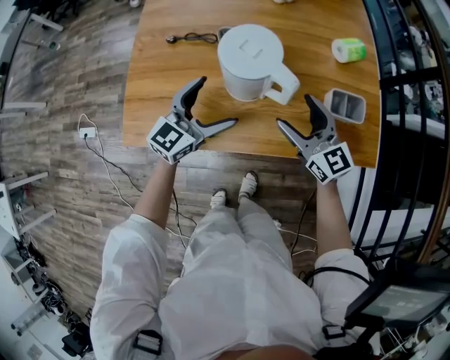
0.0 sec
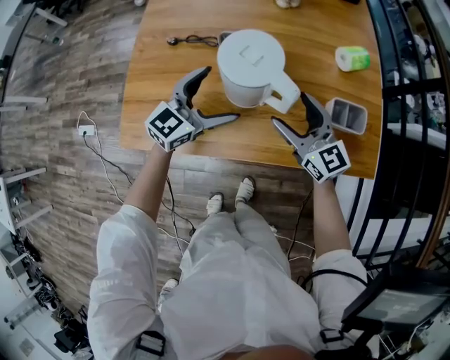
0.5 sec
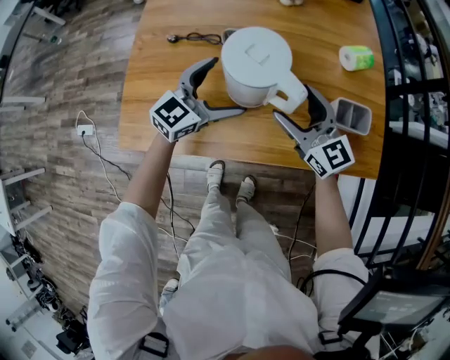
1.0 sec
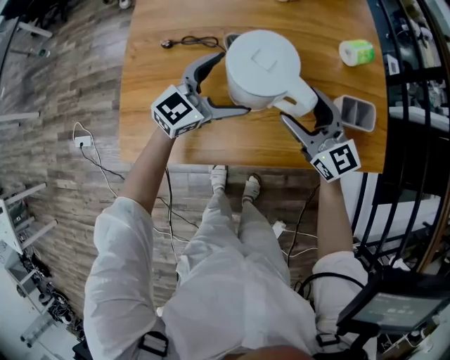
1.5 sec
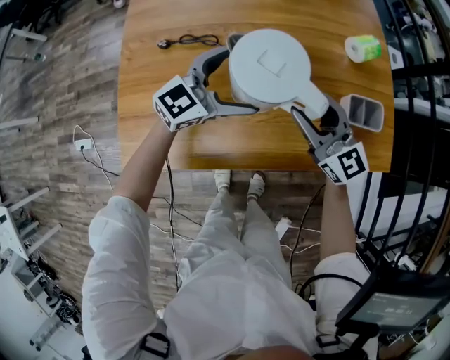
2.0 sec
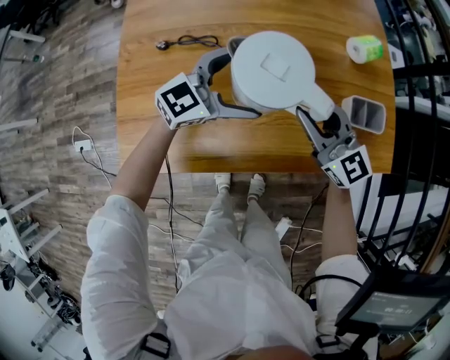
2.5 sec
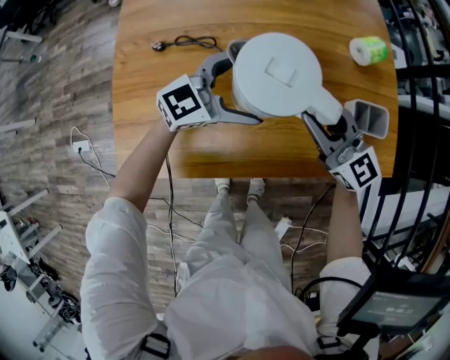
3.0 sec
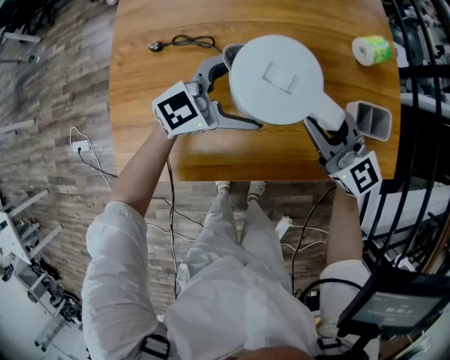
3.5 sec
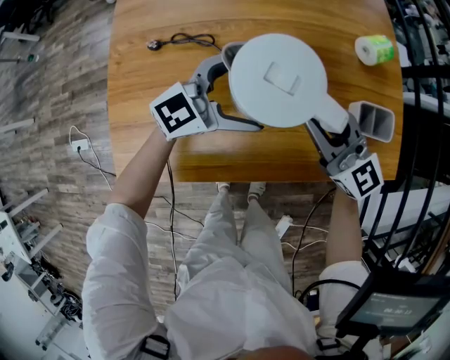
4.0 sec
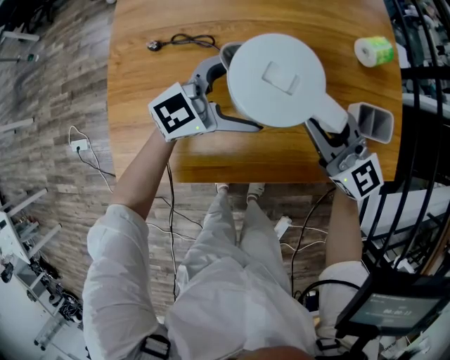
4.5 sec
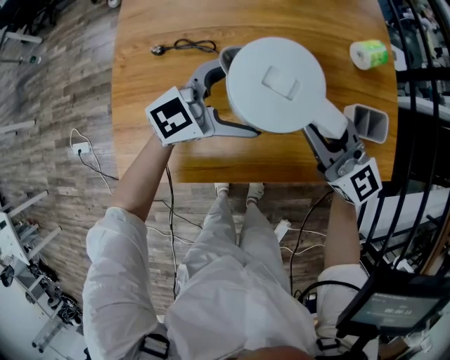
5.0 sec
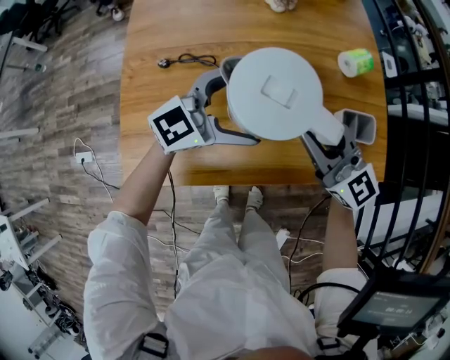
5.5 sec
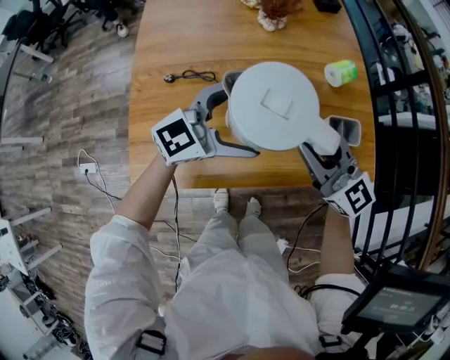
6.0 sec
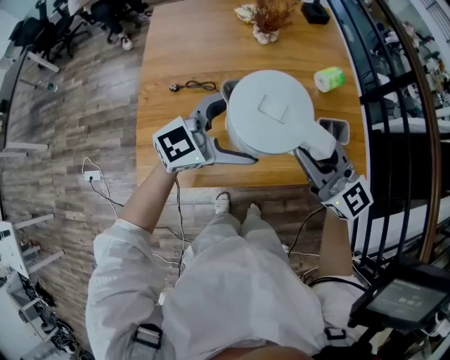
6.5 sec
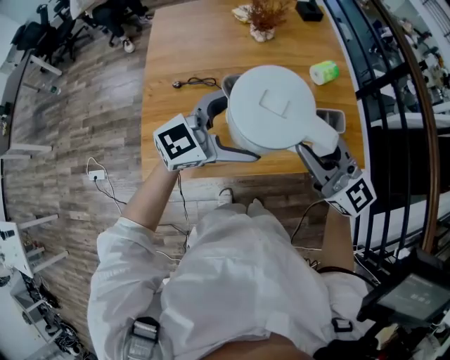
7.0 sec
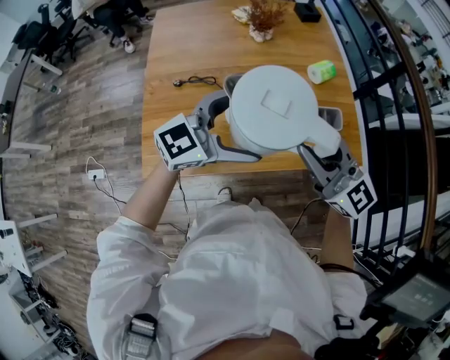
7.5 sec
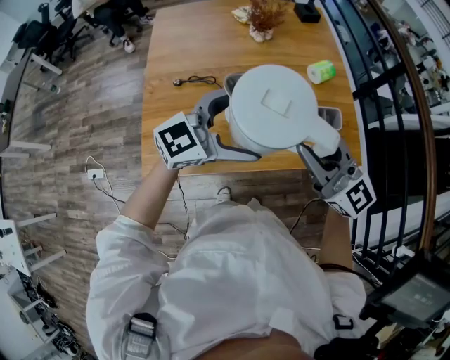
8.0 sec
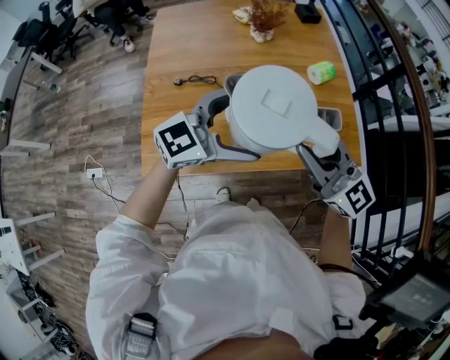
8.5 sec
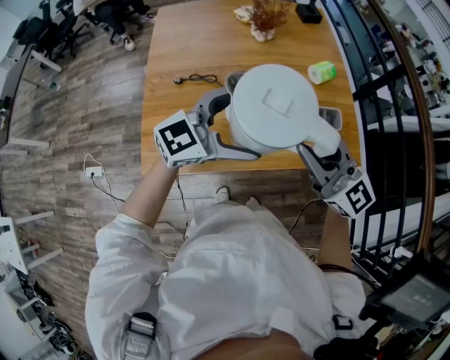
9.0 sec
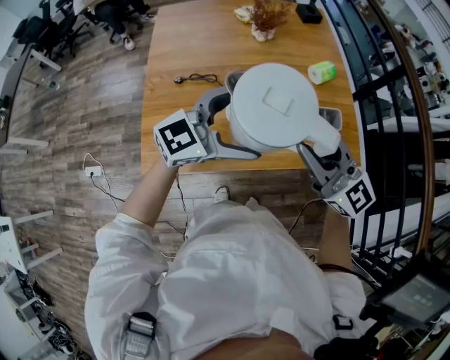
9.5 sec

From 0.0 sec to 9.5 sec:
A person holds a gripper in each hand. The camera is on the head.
From 0.0 sec to 2.0 sec: The left gripper moves forward, approximately 10 cm, and rotates about 20 degrees; the right gripper ends up about 5 cm from where it was, and closes its fingers.
From 2.0 sec to 4.0 sec: There are only small adjustments of the grippers.
From 4.0 sec to 5.5 sec: Both grippers travel together upward, approximately 10 cm.
From 5.5 sec to 7.5 sec: Both grippers travel together upward and backward, about 20 cm.
From 7.5 sec to 9.5 sec: Both grippers stay about where they are.

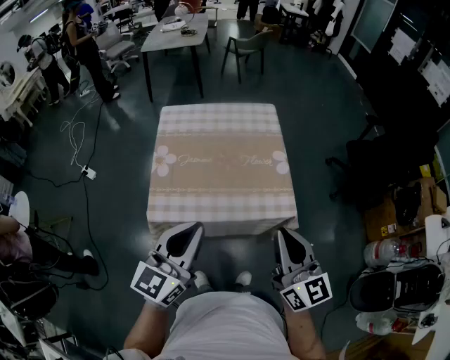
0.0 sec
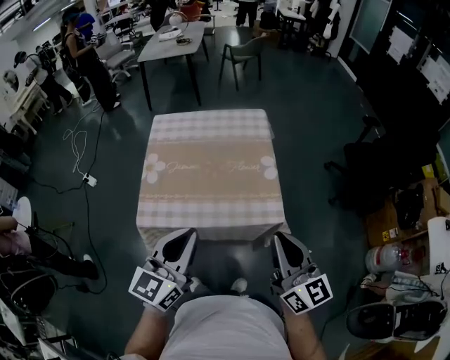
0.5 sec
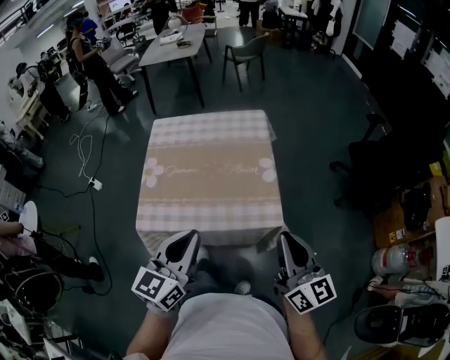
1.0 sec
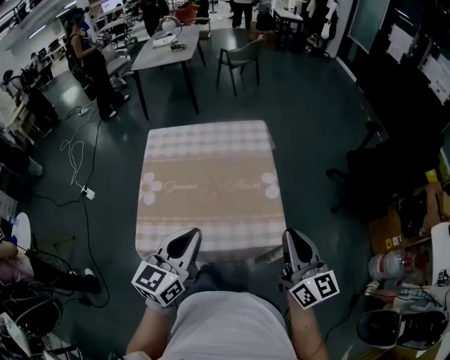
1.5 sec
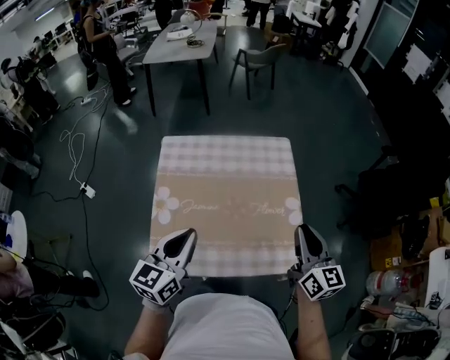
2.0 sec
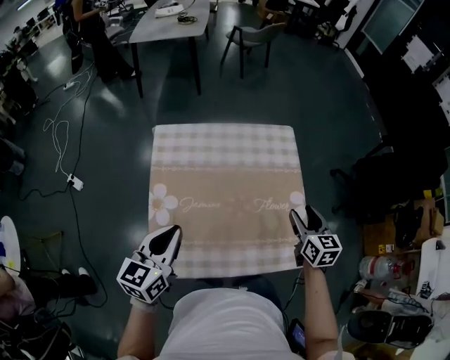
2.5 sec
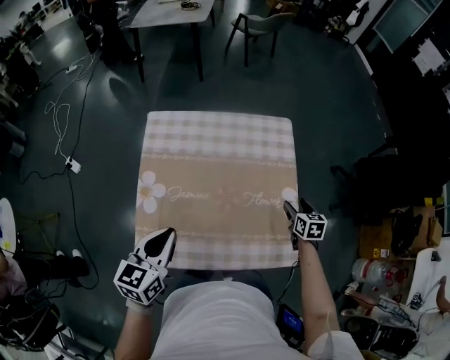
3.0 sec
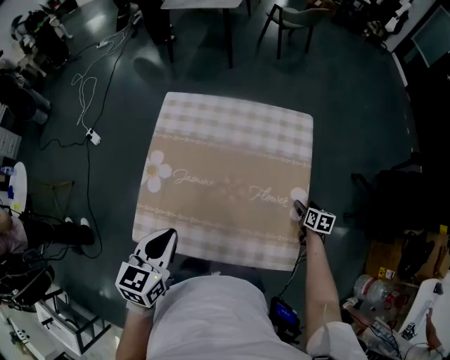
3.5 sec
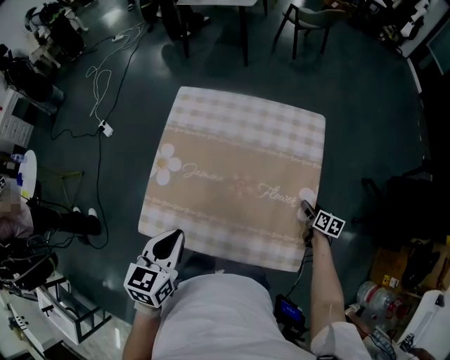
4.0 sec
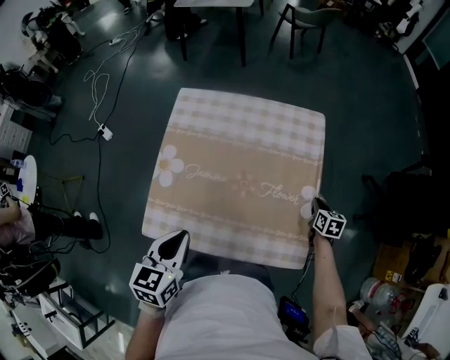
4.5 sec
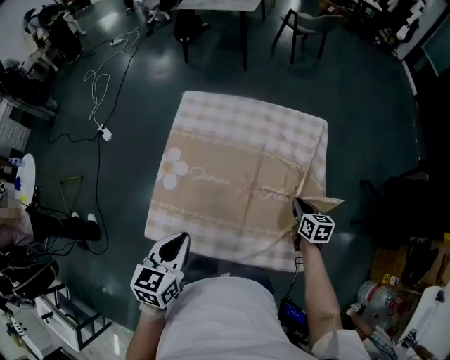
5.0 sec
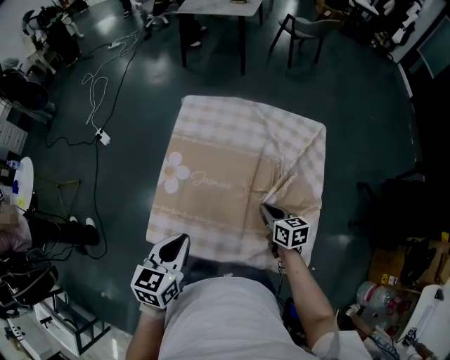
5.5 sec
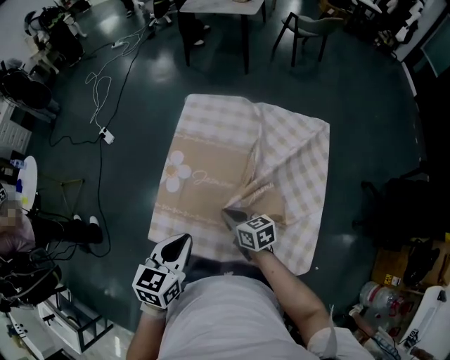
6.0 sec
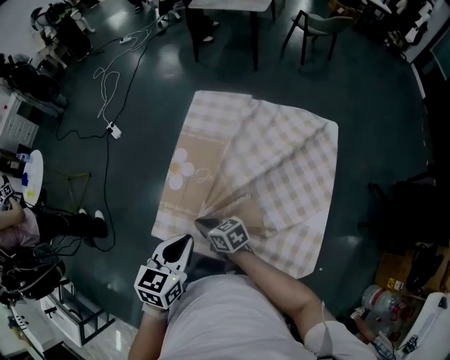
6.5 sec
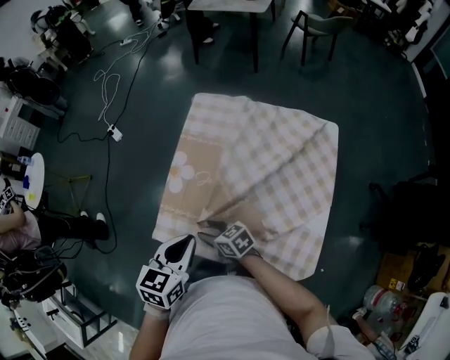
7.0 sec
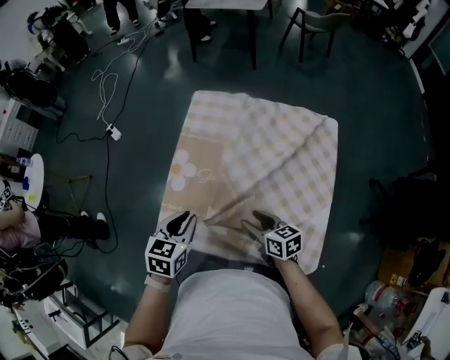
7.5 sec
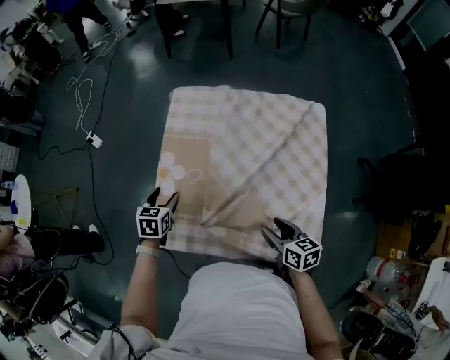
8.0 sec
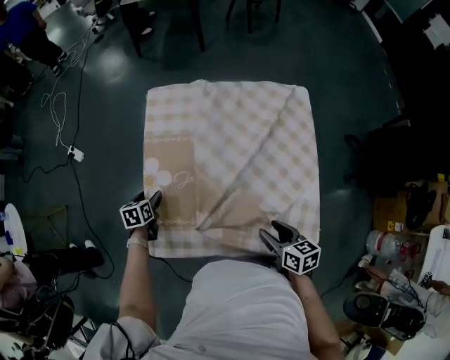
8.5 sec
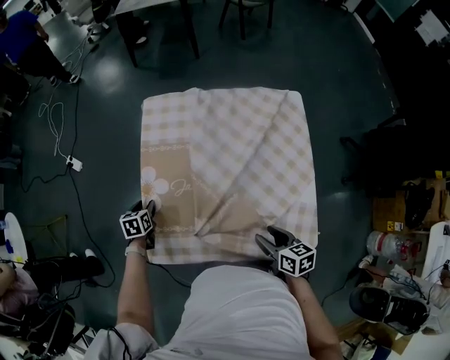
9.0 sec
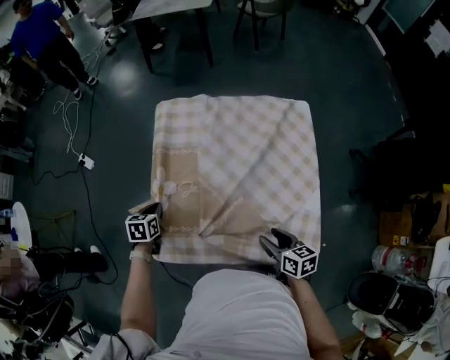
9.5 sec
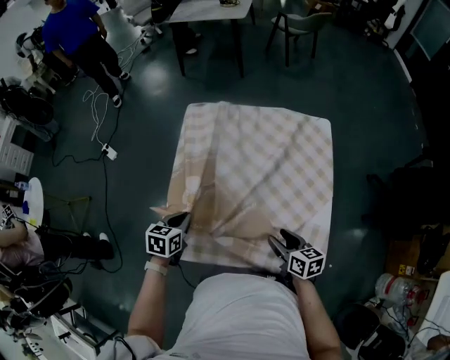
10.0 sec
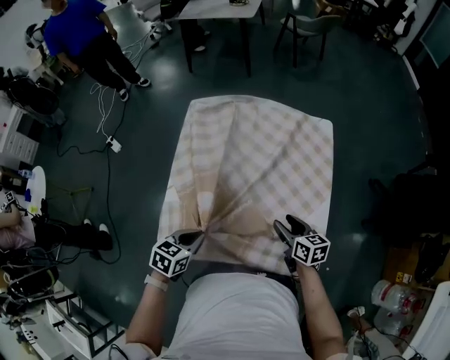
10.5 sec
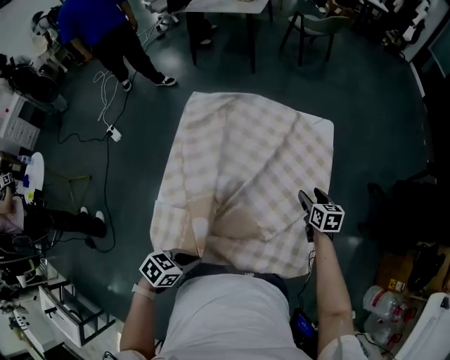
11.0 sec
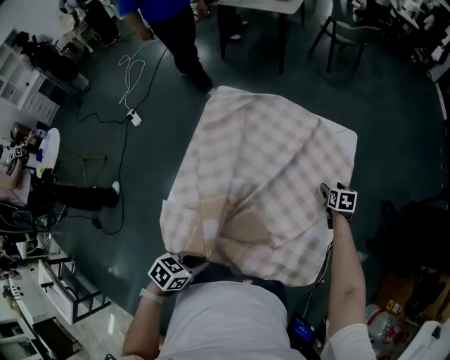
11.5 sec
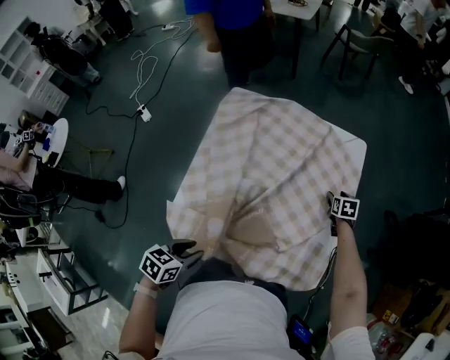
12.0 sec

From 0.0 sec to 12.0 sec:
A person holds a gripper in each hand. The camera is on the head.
From 0.0 sec to 2.0 sec: Both grippers move forward, about 25 cm.
From 2.0 sec to 4.0 sec: The right gripper travels downward and forward by roughly 40 cm, angles its fingers downward, by approximately 40 degrees, and opens up; the left gripper shifts some 10 cm downward, moves roughly 10 cm to the left and comes back, and turns by about 30 degrees.
From 4.0 sec to 6.0 sec: The right gripper moves some 40 cm, swivels about 40 degrees, and closes its fingers.
From 6.0 sec to 8.0 sec: The left gripper travels downward and forward by approximately 25 cm, and opens its fingers. Meanwhile the right gripper shifts some 15 cm to the right and backward, and opens.
From 8.0 sec to 10.0 sec: The left gripper shifts about 5 cm backward, reaches about 10 cm downward, then returns, and closes up.
From 10.0 sec to 12.0 sec: The right gripper ends up some 30 cm from where it was, and turns by some 30 degrees. The left gripper moves roughly 20 cm, and opens.

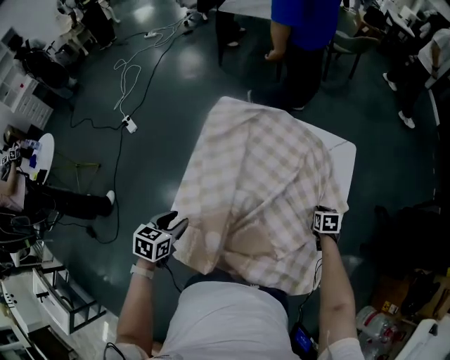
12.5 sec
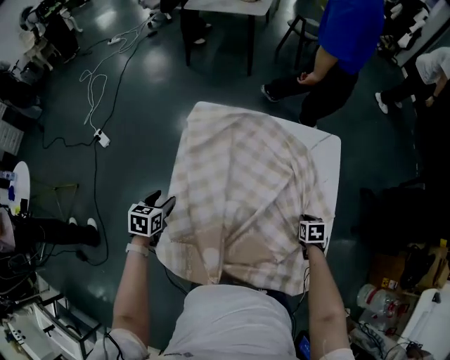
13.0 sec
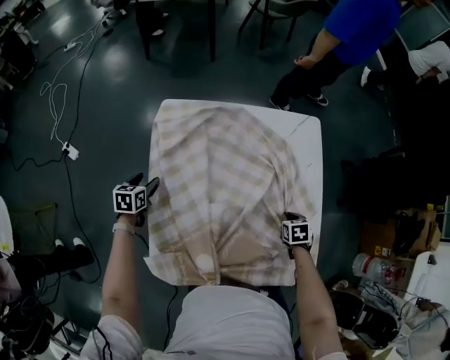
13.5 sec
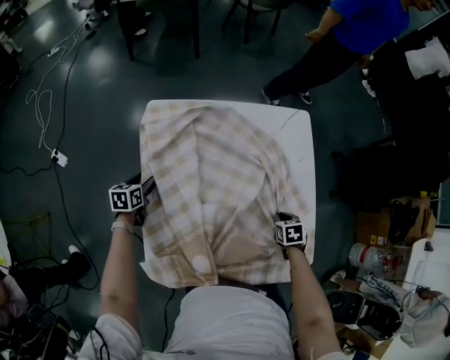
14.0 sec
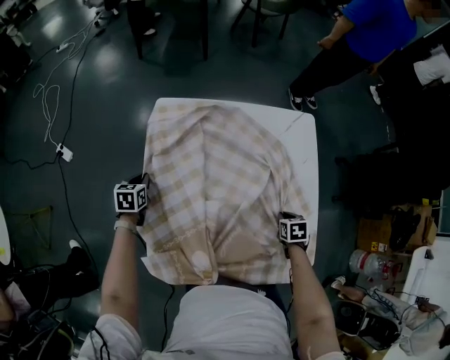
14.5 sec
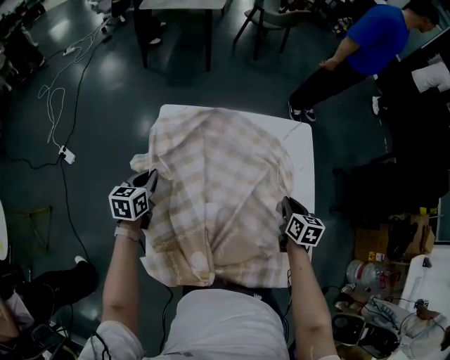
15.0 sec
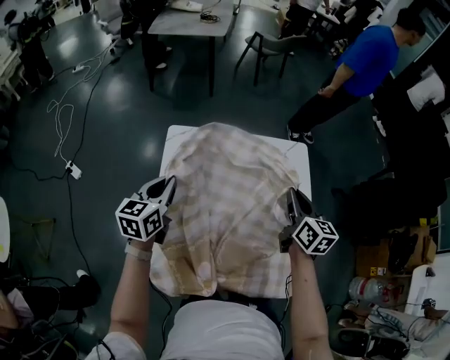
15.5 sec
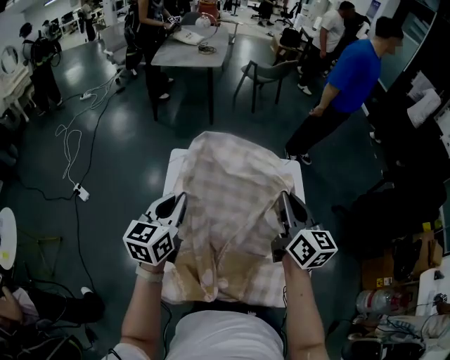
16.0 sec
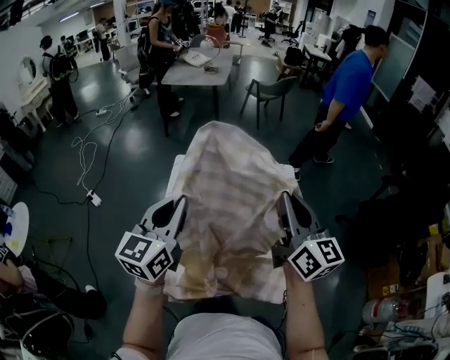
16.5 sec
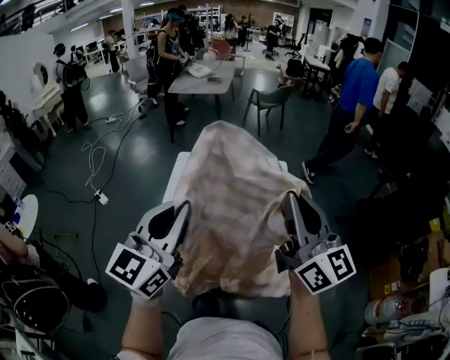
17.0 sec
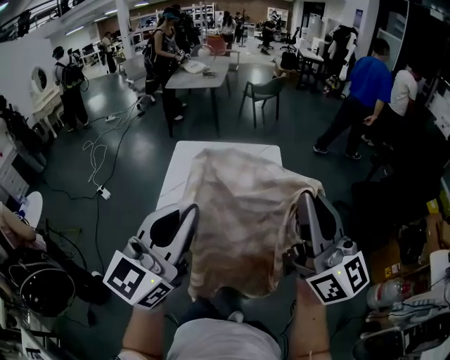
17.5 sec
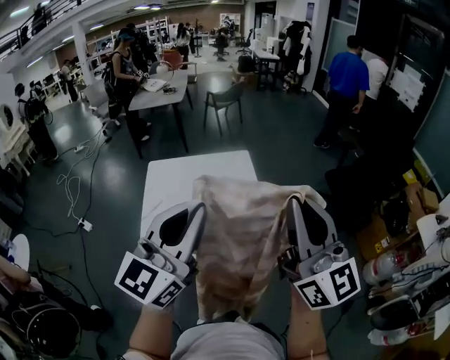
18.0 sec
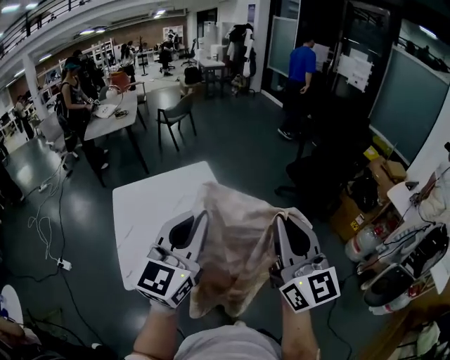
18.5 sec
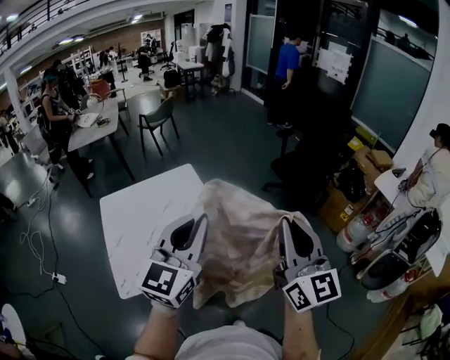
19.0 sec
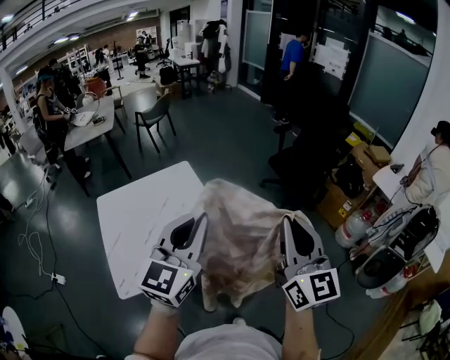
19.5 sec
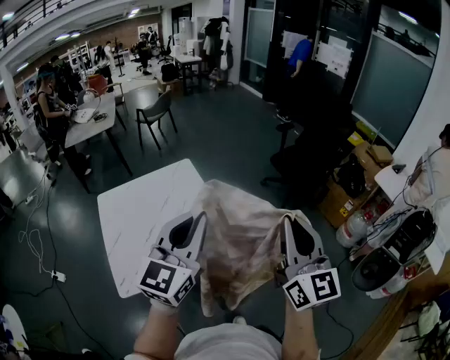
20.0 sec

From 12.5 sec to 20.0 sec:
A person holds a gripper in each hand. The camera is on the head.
From 12.5 sec to 14.5 sec: The left gripper goes some 30 cm forward, downward and to the left, and closes; the right gripper shifts approximately 10 cm backward.
From 14.5 sec to 16.5 sec: The left gripper moves upward and to the right, about 50 cm, and angles its fingers upward, by approximately 50 degrees. Meanwhile the right gripper goes roughly 50 cm upward, and points its fingers approximately 80 degrees further upward.
From 16.5 sec to 18.0 sec: The left gripper travels backward, to the right and upward by about 35 cm, and rotates roughly 30 degrees. Meanwhile the right gripper goes some 35 cm backward and upward, and swivels some 20 degrees.
From 18.0 sec to 20.0 sec: The left gripper goes approximately 10 cm to the right and forward; the right gripper travels to the right and downward by some 15 cm, and turns by approximately 30 degrees.
